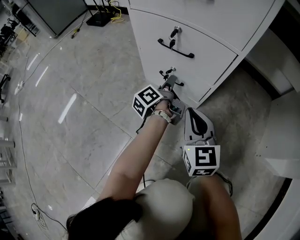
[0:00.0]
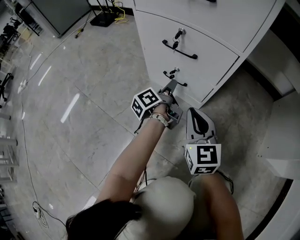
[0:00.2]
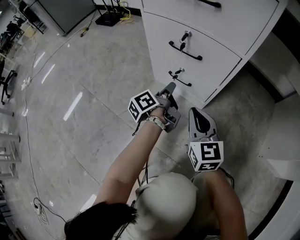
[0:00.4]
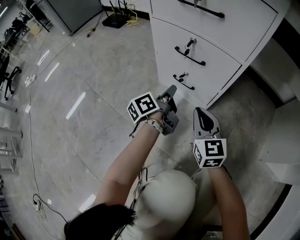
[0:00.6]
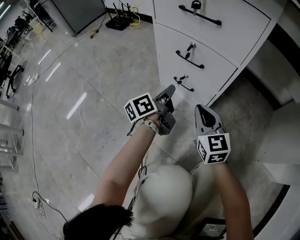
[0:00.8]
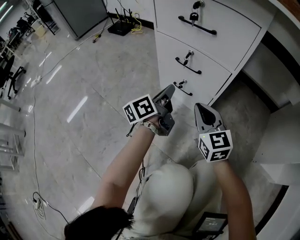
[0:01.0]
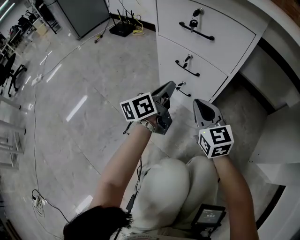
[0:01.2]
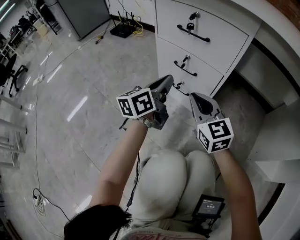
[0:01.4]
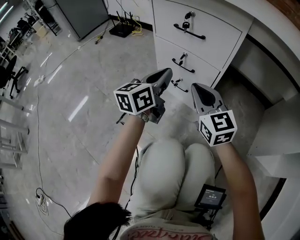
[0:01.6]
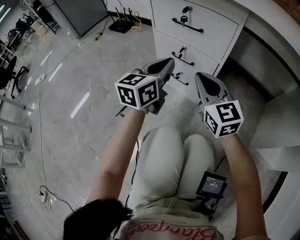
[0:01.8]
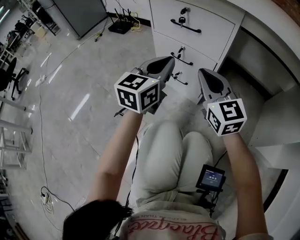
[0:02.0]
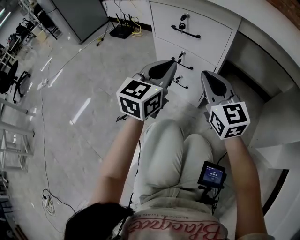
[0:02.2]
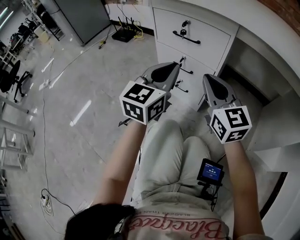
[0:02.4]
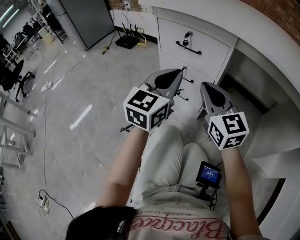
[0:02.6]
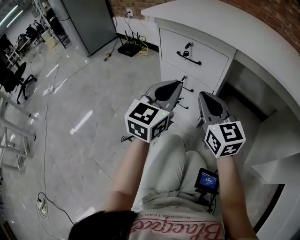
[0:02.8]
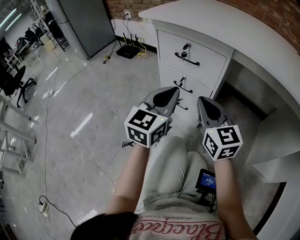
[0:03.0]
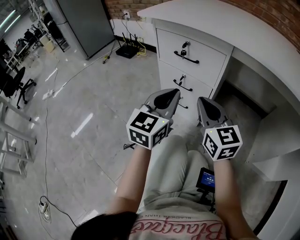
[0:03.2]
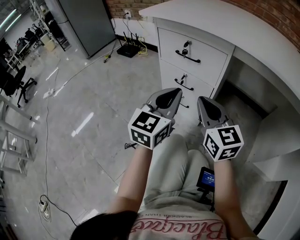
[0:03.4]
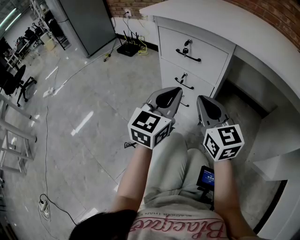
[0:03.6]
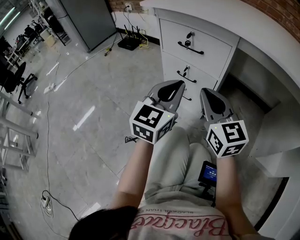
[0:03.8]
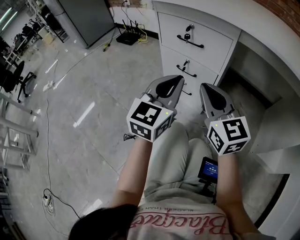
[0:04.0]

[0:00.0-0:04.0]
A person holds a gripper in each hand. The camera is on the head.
0:00.0 to 0:01.4: The left gripper goes some 25 cm upward, twists about 50 degrees clockwise, seen from behind, and closes its fingers. The right gripper goes roughly 15 cm upward.
0:01.4 to 0:02.6: The right gripper heads upward, covering about 15 cm. The left gripper heads upward and backward, covering about 20 cm, and turns by approximately 40 degrees.
0:02.6 to 0:04.0: The grippers stay close to where they were, moving slightly.

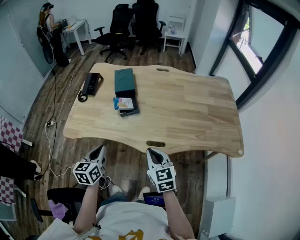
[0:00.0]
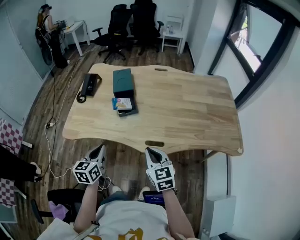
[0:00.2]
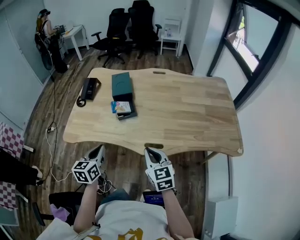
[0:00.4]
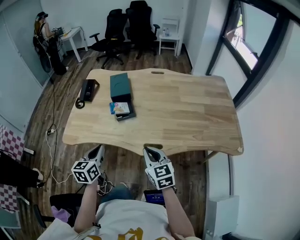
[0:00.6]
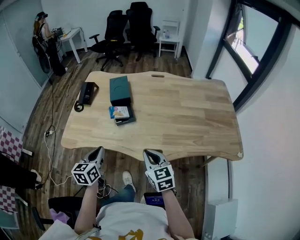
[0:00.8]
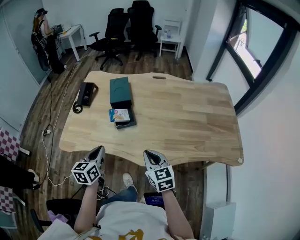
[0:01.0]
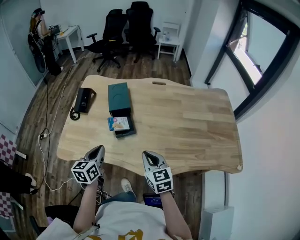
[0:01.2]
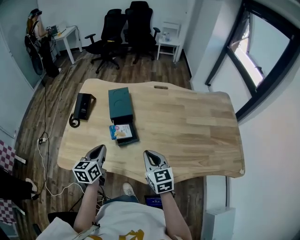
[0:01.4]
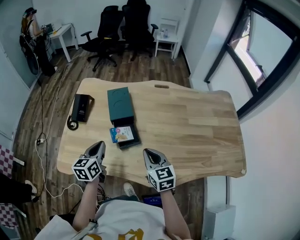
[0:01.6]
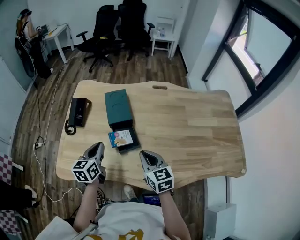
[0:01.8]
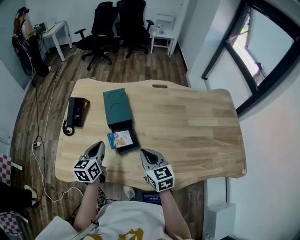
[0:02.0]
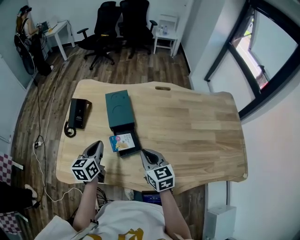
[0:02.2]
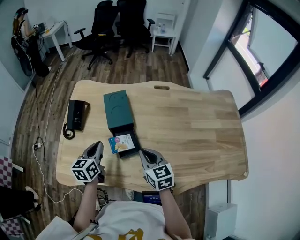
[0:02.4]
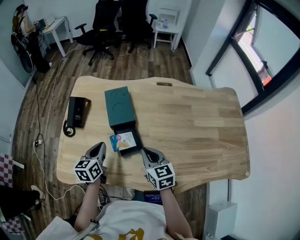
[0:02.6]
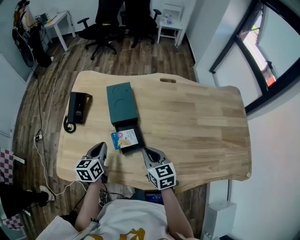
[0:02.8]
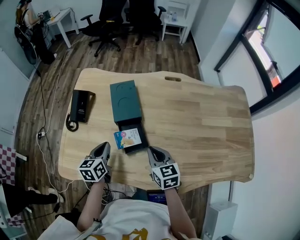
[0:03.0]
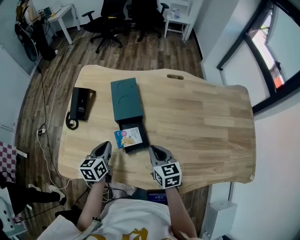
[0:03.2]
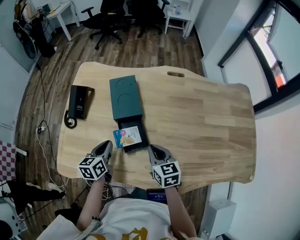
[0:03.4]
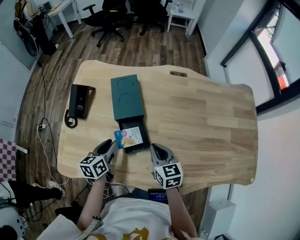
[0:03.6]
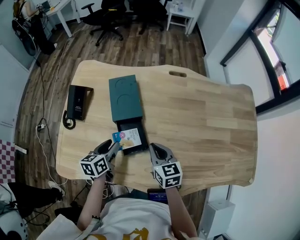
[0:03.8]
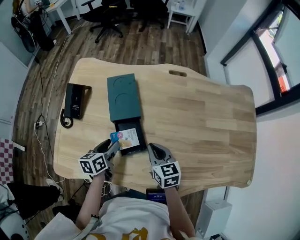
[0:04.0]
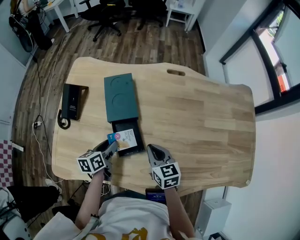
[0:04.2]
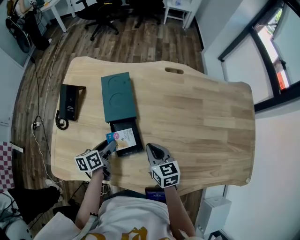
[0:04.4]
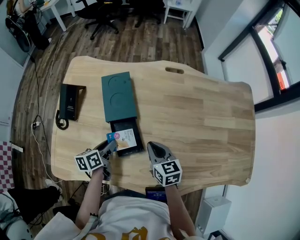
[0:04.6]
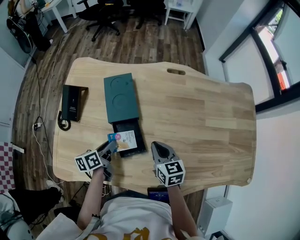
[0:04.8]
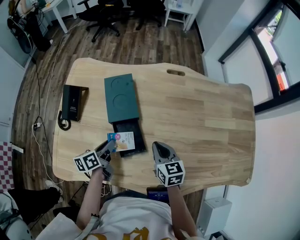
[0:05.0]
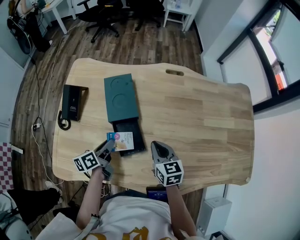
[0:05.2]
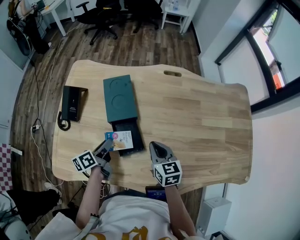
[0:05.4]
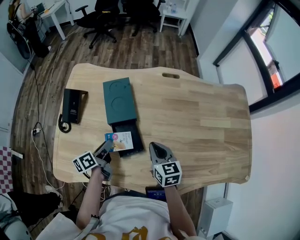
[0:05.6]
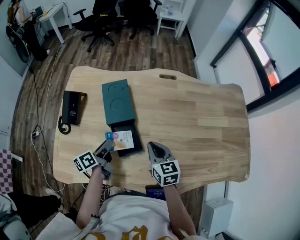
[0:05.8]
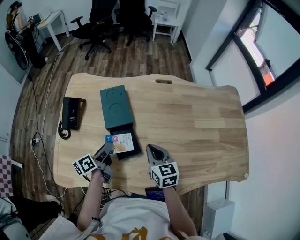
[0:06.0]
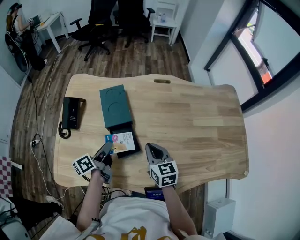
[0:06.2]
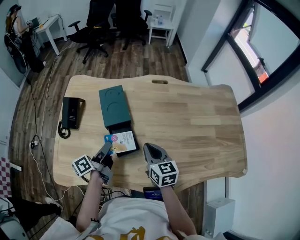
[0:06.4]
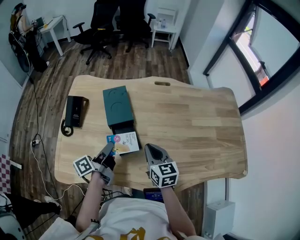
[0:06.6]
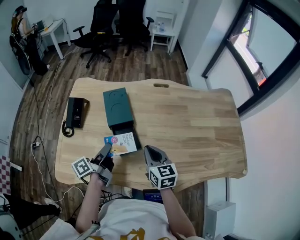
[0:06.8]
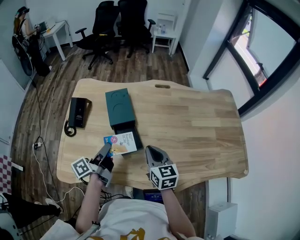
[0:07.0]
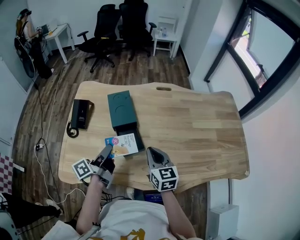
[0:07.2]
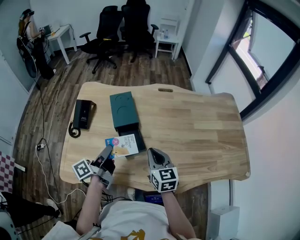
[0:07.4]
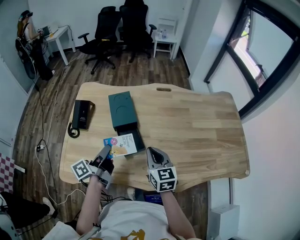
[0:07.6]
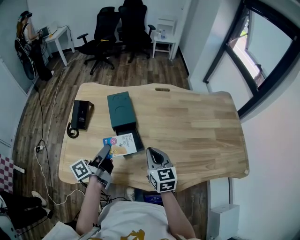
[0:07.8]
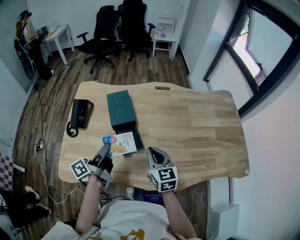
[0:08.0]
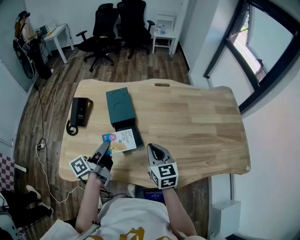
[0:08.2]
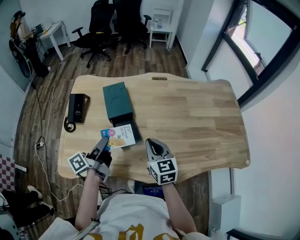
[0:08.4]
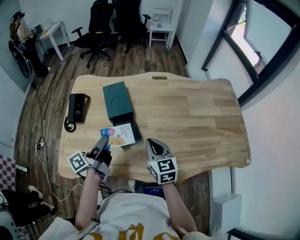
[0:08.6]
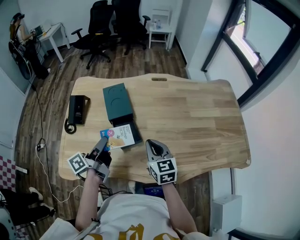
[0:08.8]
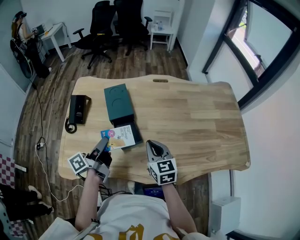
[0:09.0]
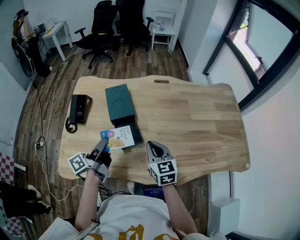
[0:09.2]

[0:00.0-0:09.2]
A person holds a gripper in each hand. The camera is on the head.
0:00.0 to 0:01.6: Both grippers move forward, approximately 25 cm.
0:01.6 to 0:03.0: The right gripper travels forward and downward by approximately 10 cm, while the left gripper moves downward and forward, about 10 cm.
0:03.0 to 0:04.6: The right gripper is displaced forward by about 5 cm, while the left gripper heads downward, covering roughly 5 cm, turns by about 30 degrees, and opens up.
0:04.6 to 0:06.2: The right gripper moves upward, approximately 5 cm; the left gripper goes about 10 cm upward, and changes its angle by some 30 degrees.
0:06.2 to 0:07.6: The right gripper travels backward and upward by some 10 cm; the left gripper moves upward and backward, roughly 10 cm.
0:07.6 to 0:09.2: There are only small adjustments of the grippers.

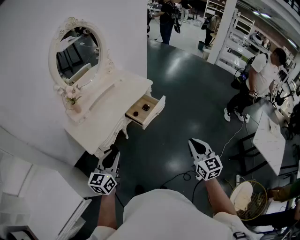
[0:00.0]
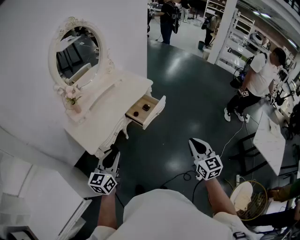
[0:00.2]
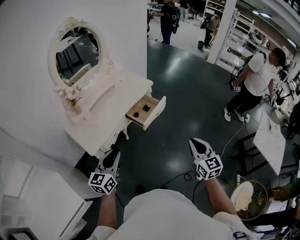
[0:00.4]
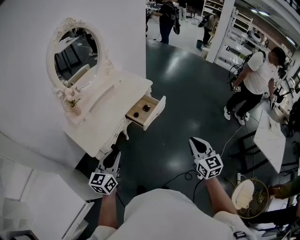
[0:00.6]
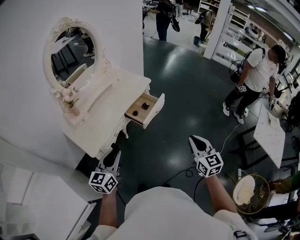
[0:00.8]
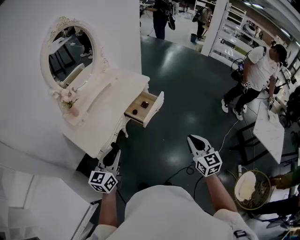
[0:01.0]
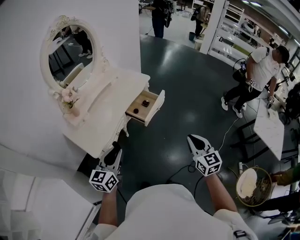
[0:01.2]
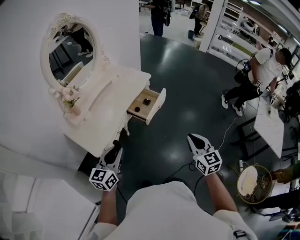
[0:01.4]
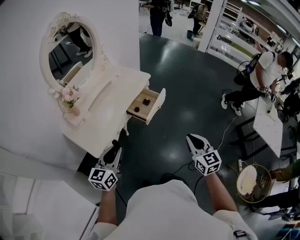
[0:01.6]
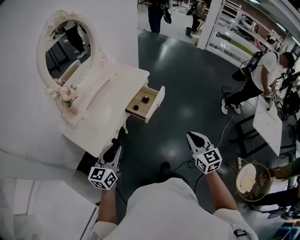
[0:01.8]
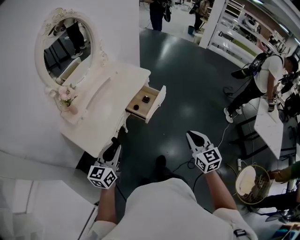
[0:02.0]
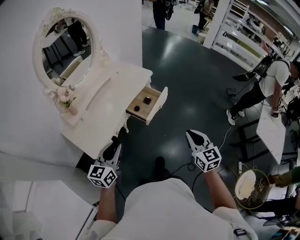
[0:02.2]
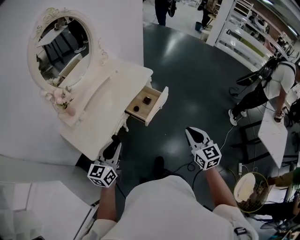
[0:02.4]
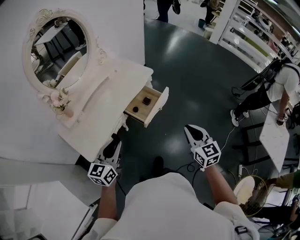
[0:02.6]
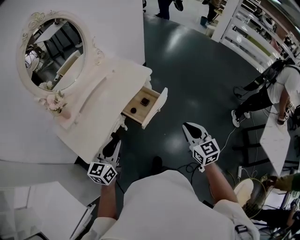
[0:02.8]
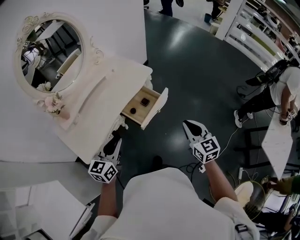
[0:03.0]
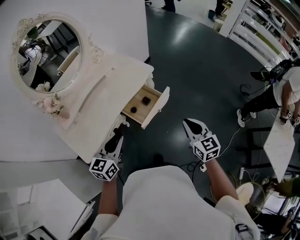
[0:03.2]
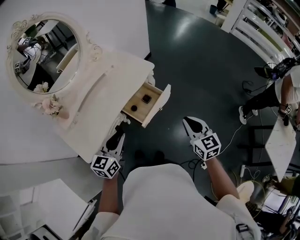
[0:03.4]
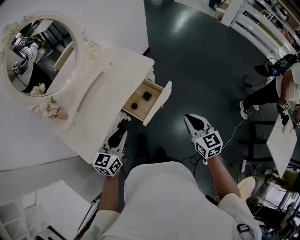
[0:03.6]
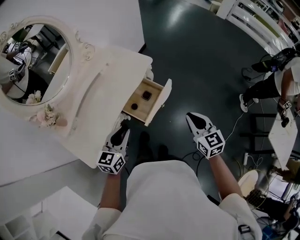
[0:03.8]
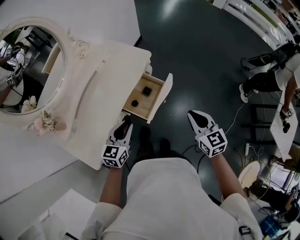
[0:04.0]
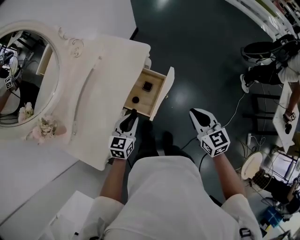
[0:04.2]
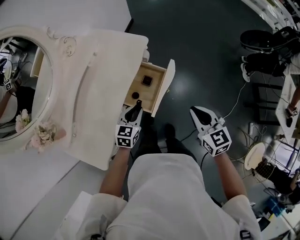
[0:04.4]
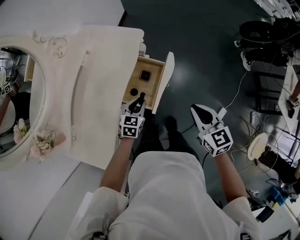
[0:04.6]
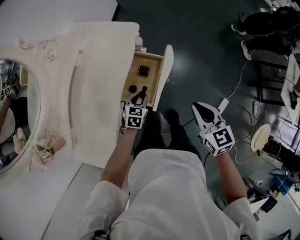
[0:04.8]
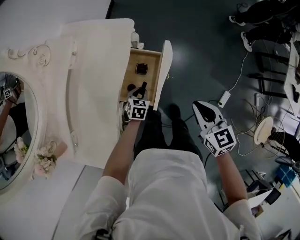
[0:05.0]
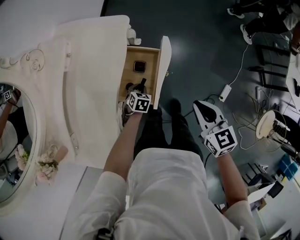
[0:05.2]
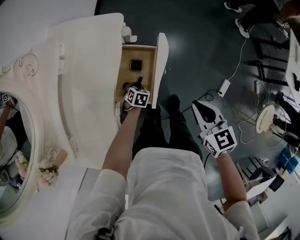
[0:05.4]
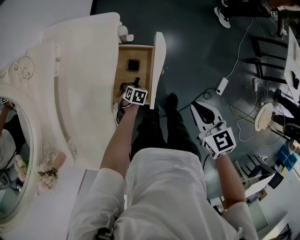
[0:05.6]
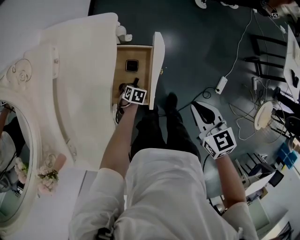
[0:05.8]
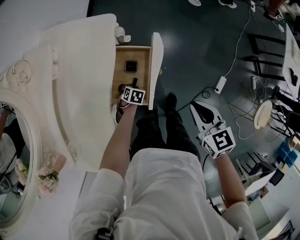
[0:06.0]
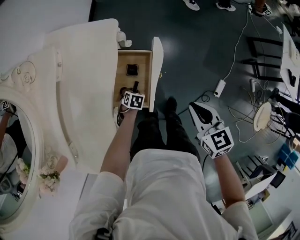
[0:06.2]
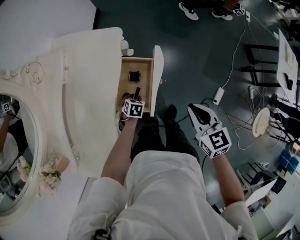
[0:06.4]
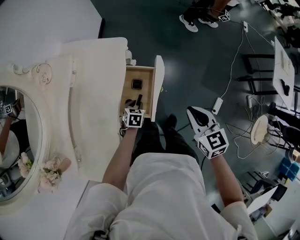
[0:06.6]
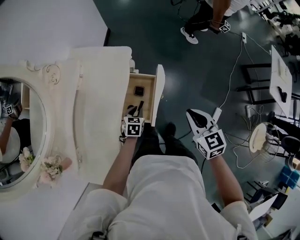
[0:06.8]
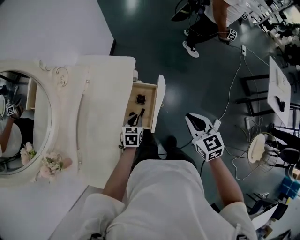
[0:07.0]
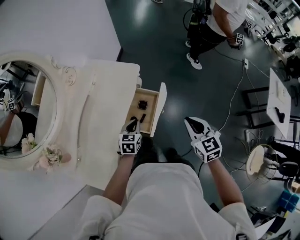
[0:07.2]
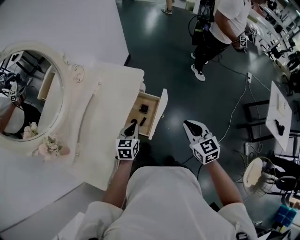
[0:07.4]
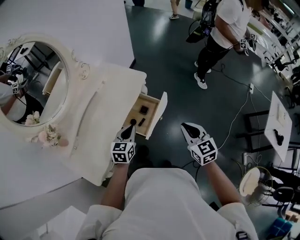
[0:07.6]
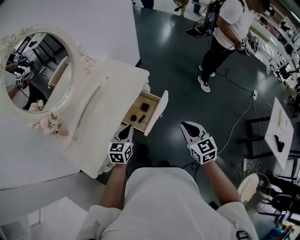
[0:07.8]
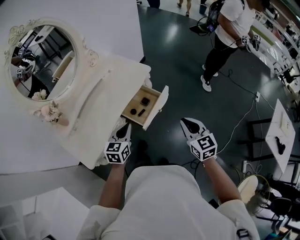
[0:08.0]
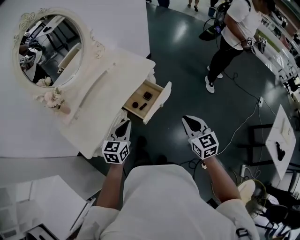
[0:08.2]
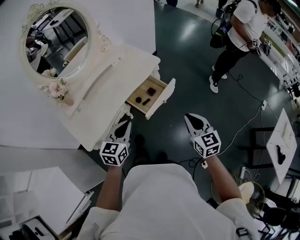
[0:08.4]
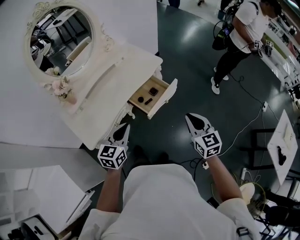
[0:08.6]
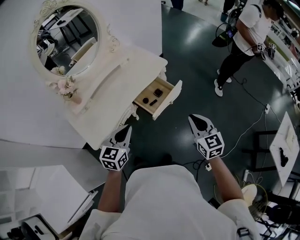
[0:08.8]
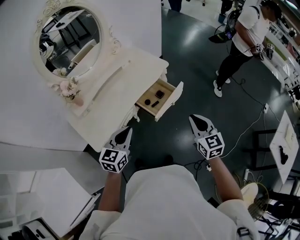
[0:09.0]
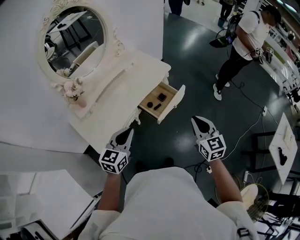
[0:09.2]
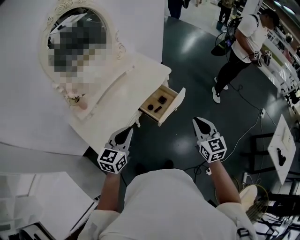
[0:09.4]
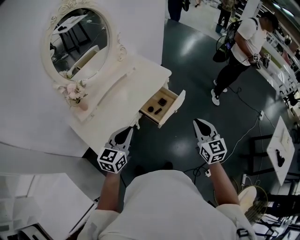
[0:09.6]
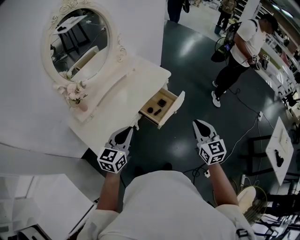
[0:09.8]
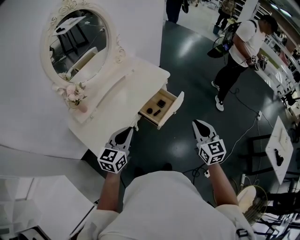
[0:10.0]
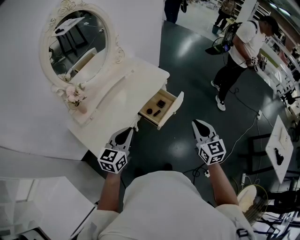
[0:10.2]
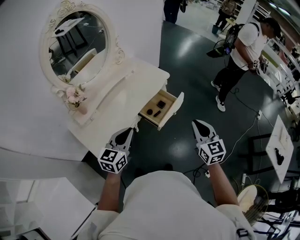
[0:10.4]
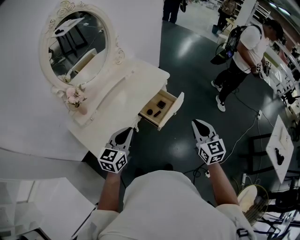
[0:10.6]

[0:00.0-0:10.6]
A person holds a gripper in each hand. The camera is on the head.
0:00.0 to 0:01.6: Both grippers move to the left, some 10 cm.
0:01.6 to 0:03.0: The left gripper travels forward and to the right by about 20 cm, while the right gripper travels forward by roughly 25 cm.
0:03.0 to 0:04.6: The right gripper goes approximately 15 cm downward, forward and to the left, and swivels roughly 20 degrees. Meanwhile the left gripper travels downward and forward by roughly 35 cm, and rotates approximately 40 degrees.
0:04.6 to 0:06.0: The left gripper moves downward, roughly 25 cm, and tilts its fingers about 40 degrees downward, while the right gripper goes approximately 5 cm downward.
0:06.0 to 0:07.6: The left gripper shifts roughly 40 cm upward, points its fingers roughly 50 degrees further upward, and closes its fingers. The right gripper goes approximately 15 cm upward, and rotates about 30 degrees.
0:07.6 to 0:09.0: The left gripper heads backward and upward, covering about 25 cm. The right gripper is displaced backward by some 10 cm.
0:09.0 to 0:10.6: The left gripper is displaced to the left by roughly 5 cm; the right gripper shifts by some 5 cm.
